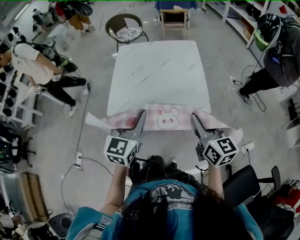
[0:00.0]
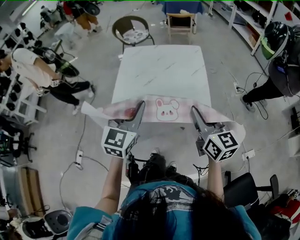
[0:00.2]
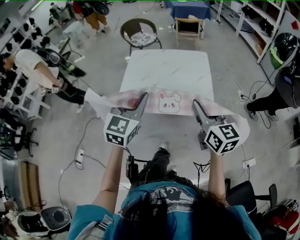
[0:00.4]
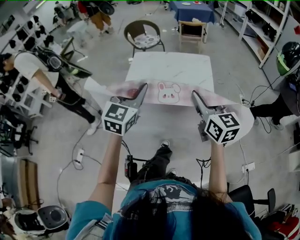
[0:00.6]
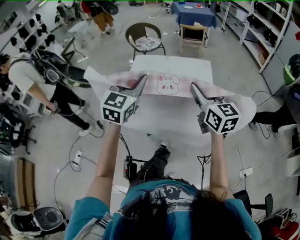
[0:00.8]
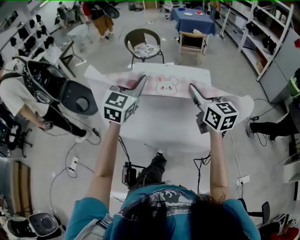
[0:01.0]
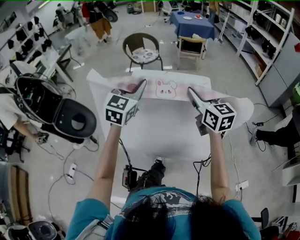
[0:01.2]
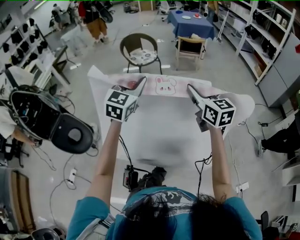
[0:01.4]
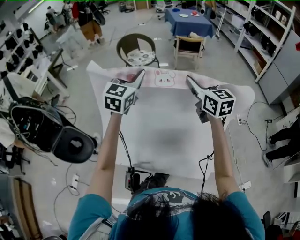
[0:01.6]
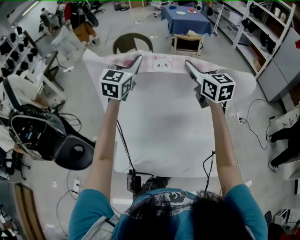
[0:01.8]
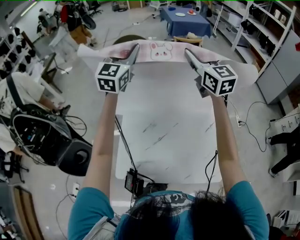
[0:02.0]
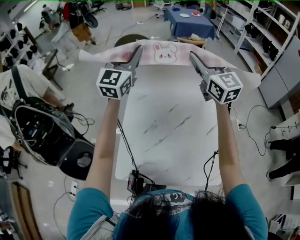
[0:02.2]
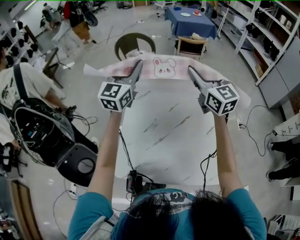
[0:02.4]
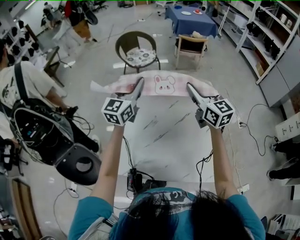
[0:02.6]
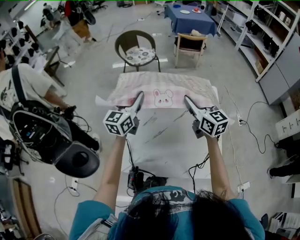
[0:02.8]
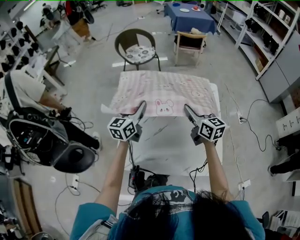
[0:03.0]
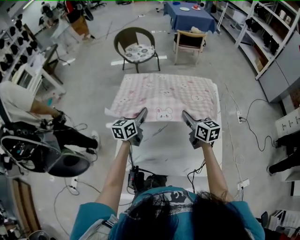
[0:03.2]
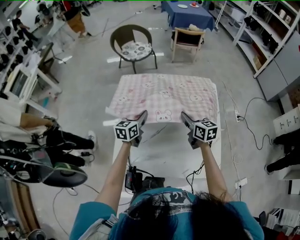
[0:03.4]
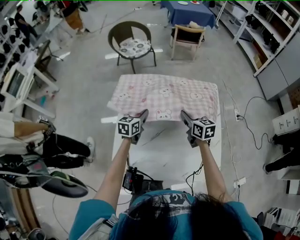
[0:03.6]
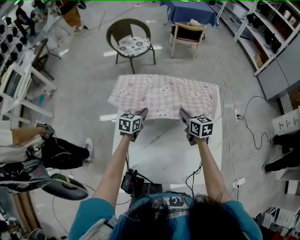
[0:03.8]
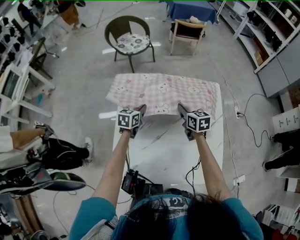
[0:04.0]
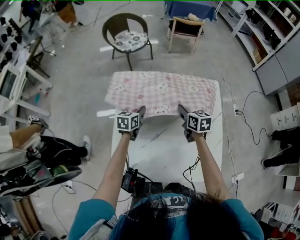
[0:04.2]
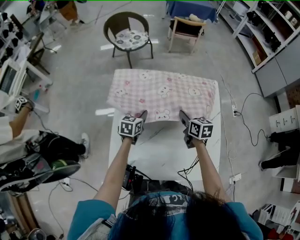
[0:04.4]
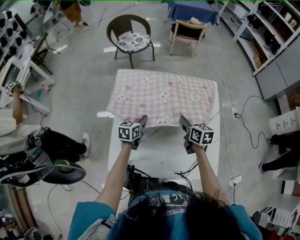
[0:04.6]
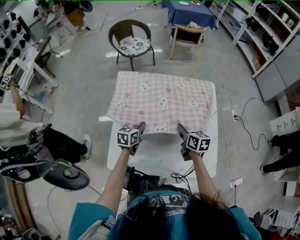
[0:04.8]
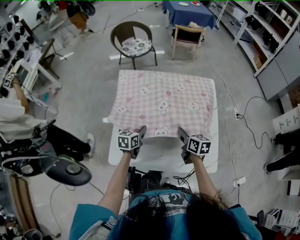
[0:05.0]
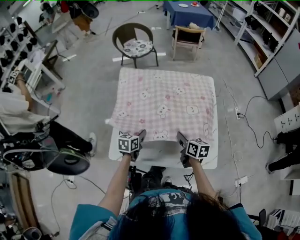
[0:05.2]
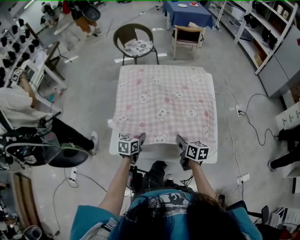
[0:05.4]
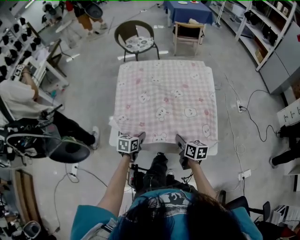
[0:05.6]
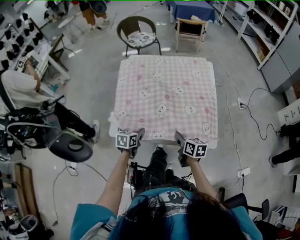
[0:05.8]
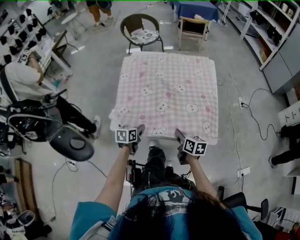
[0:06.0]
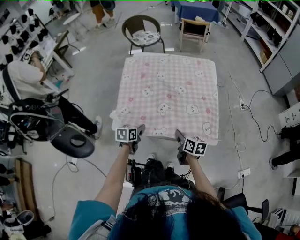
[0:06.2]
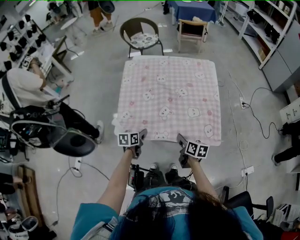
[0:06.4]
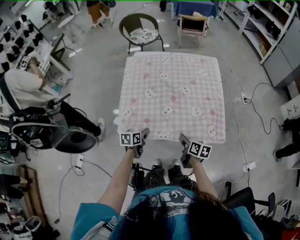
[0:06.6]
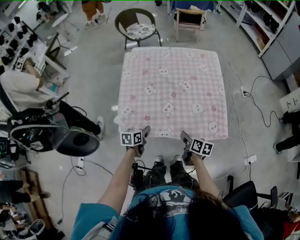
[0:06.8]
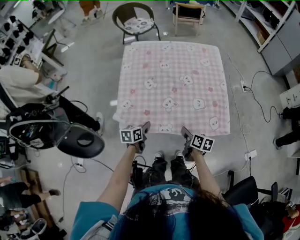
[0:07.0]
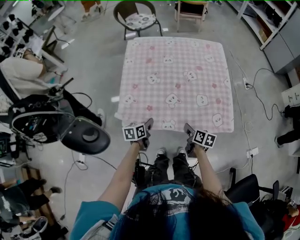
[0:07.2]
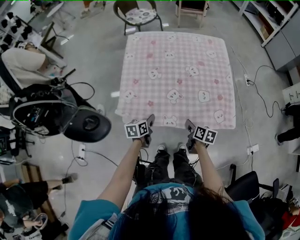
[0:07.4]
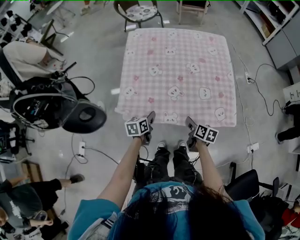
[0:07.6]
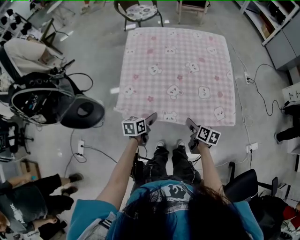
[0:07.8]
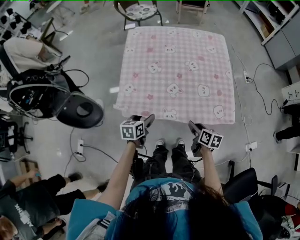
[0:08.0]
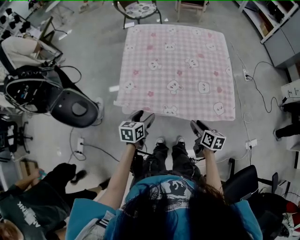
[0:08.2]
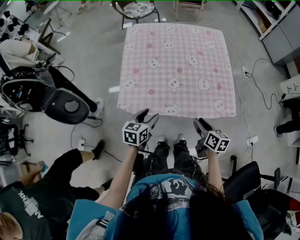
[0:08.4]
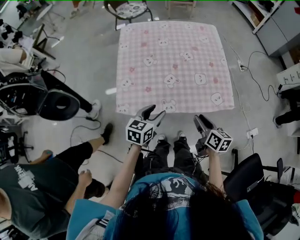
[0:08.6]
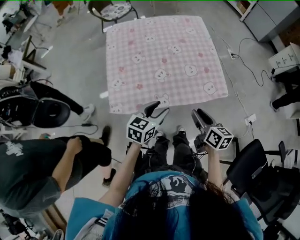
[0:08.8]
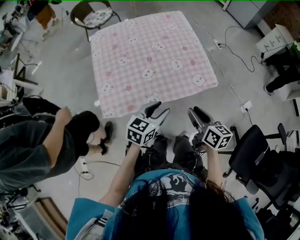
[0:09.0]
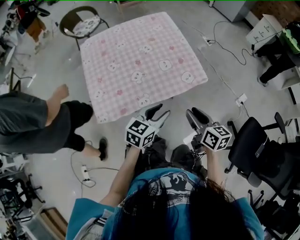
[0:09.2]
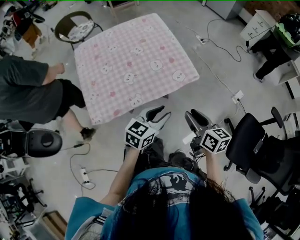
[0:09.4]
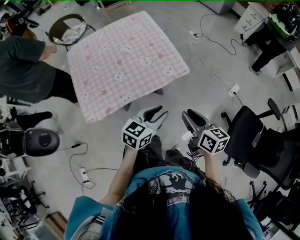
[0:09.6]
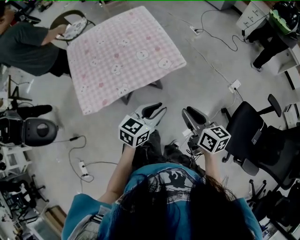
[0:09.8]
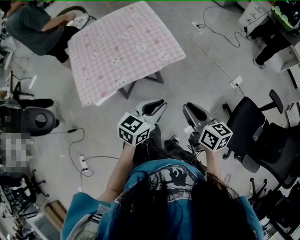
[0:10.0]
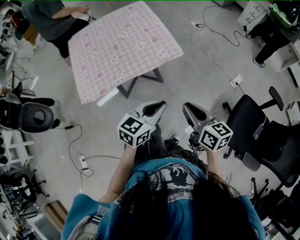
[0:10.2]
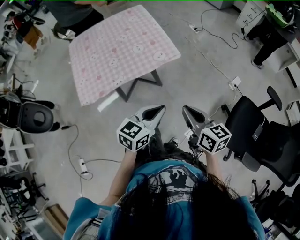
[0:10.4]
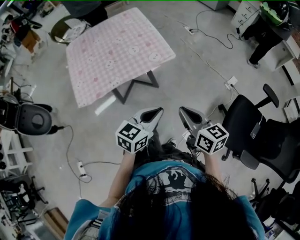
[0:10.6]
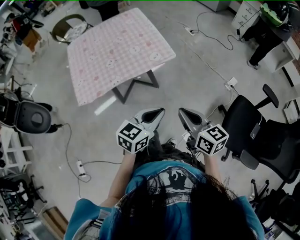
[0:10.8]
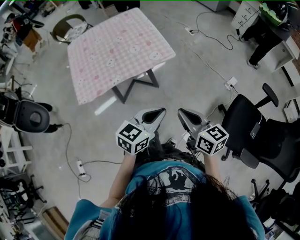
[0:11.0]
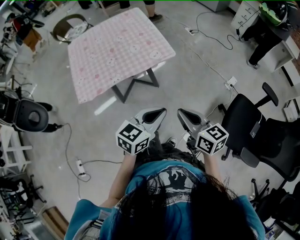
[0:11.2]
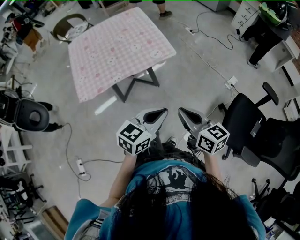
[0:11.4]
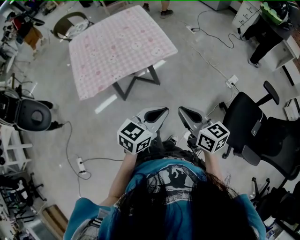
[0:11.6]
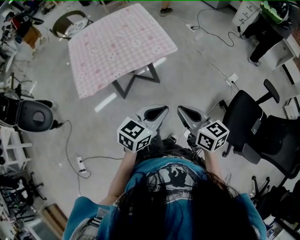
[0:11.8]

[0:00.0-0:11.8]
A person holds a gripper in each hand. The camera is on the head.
0:00.0 to 0:01.4: Both grippers travel together forward, about 35 cm.
0:01.4 to 0:03.0: The two grippers go approximately 15 cm downward and forward. The left gripper changes its angle by some 30 degrees.
0:03.0 to 0:04.4: Both grippers move downward, some 15 cm. The left gripper tilts its fingers some 30 degrees downward; the right gripper turns by about 20 degrees.
0:04.4 to 0:06.0: The two grippers go roughly 30 cm backward.
0:06.0 to 0:07.4: The right gripper is displaced downward by approximately 5 cm.
0:07.4 to 0:08.8: The left gripper travels upward, to the right and backward by some 20 cm, rotates approximately 40 degrees, and opens its fingers. Meanwhile the right gripper goes approximately 20 cm upward and backward, swivels approximately 20 degrees, and opens up.
0:08.8 to 0:10.4: Both grippers move to the right and backward, some 25 cm. The right gripper closes; the left gripper changes its angle by approximately 20 degrees, and closes up.
0:10.4 to 0:11.8: The left gripper is displaced backward by about 5 cm, while the right gripper ends up approximately 5 cm from where it was.

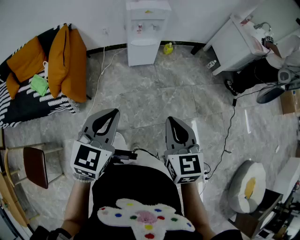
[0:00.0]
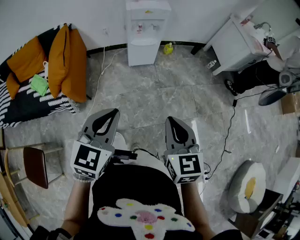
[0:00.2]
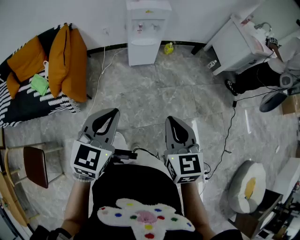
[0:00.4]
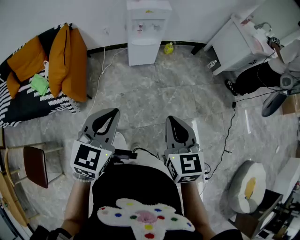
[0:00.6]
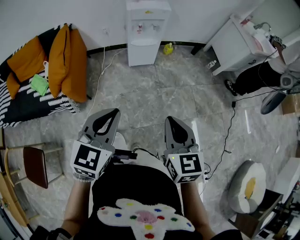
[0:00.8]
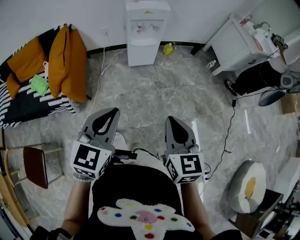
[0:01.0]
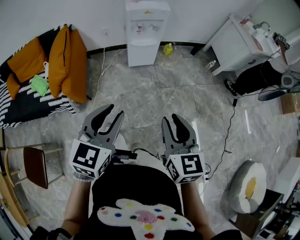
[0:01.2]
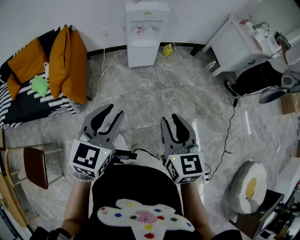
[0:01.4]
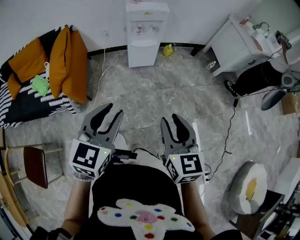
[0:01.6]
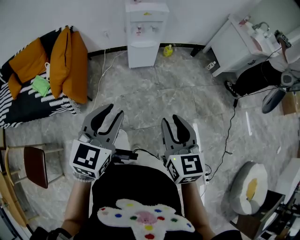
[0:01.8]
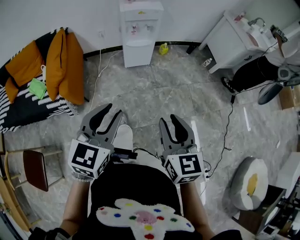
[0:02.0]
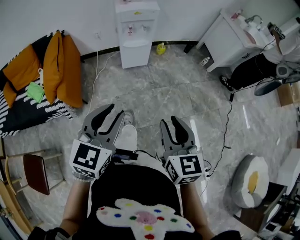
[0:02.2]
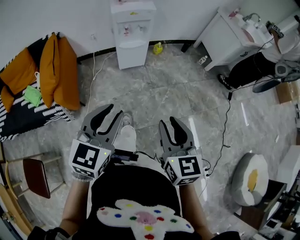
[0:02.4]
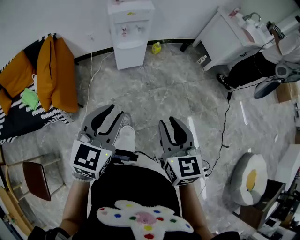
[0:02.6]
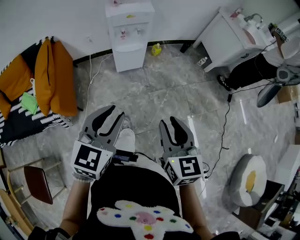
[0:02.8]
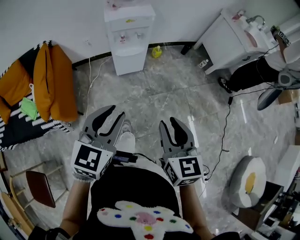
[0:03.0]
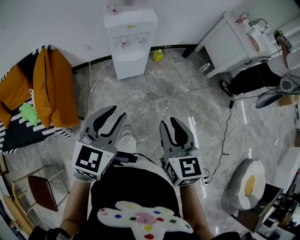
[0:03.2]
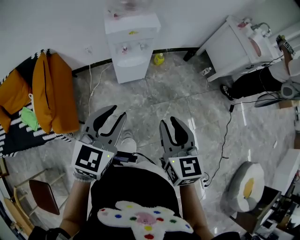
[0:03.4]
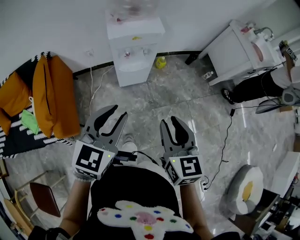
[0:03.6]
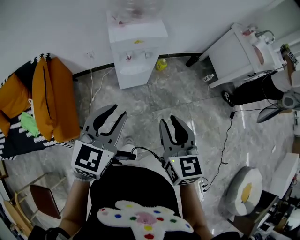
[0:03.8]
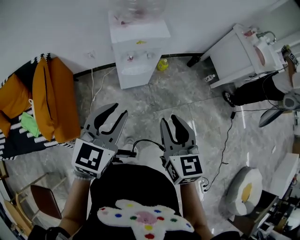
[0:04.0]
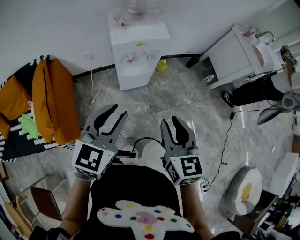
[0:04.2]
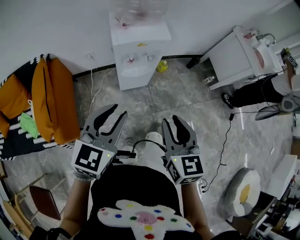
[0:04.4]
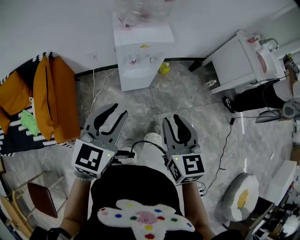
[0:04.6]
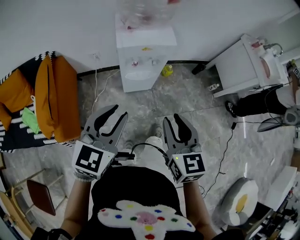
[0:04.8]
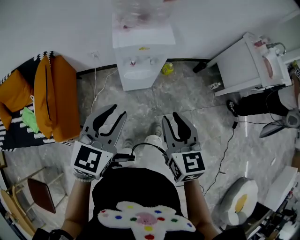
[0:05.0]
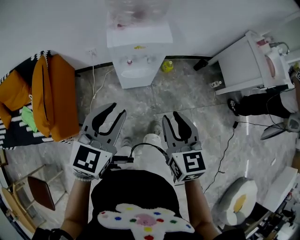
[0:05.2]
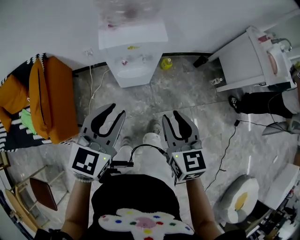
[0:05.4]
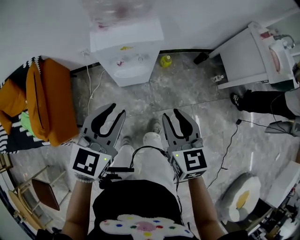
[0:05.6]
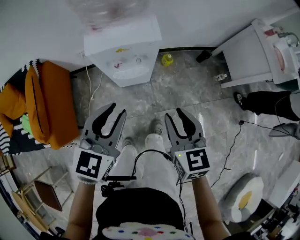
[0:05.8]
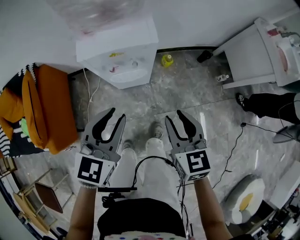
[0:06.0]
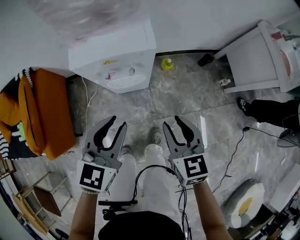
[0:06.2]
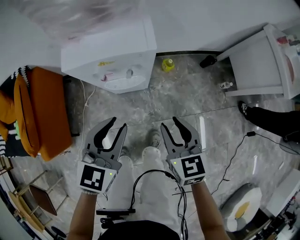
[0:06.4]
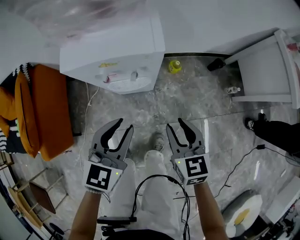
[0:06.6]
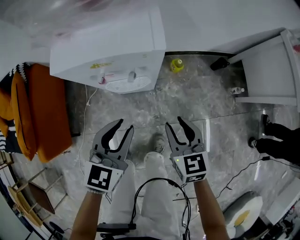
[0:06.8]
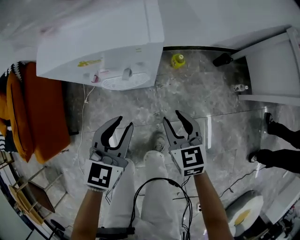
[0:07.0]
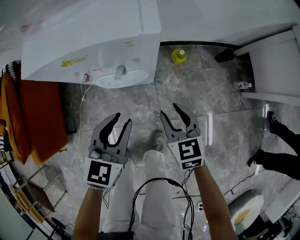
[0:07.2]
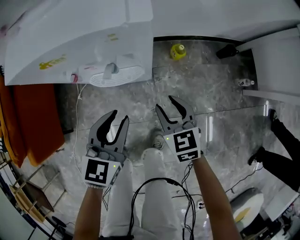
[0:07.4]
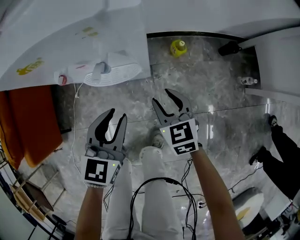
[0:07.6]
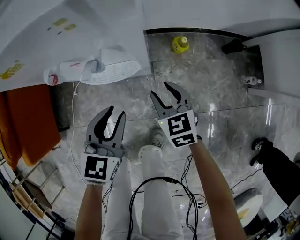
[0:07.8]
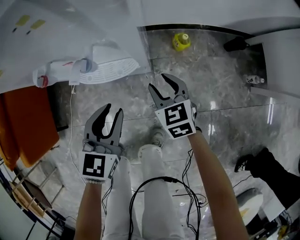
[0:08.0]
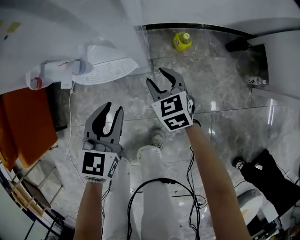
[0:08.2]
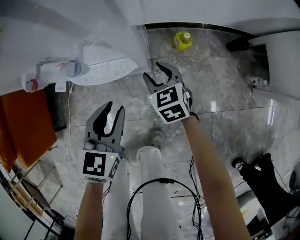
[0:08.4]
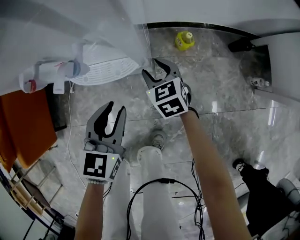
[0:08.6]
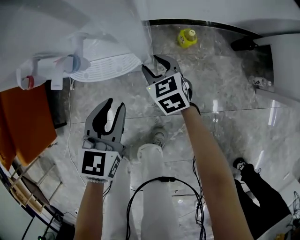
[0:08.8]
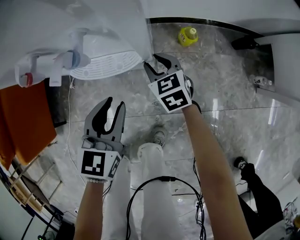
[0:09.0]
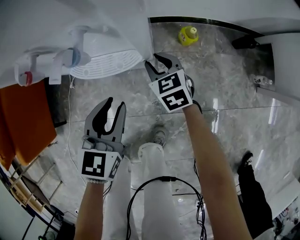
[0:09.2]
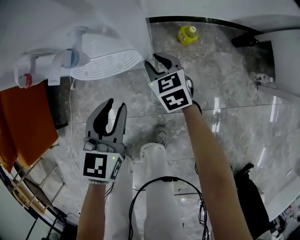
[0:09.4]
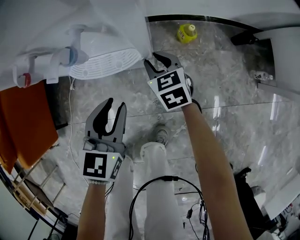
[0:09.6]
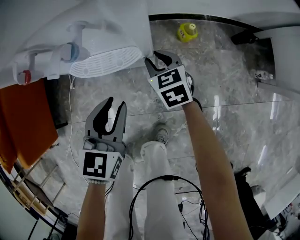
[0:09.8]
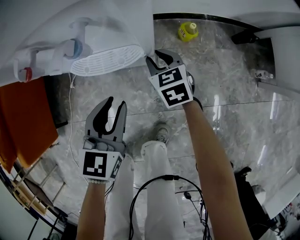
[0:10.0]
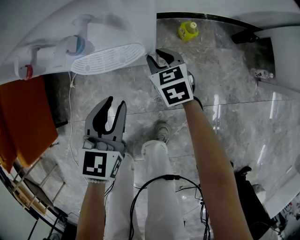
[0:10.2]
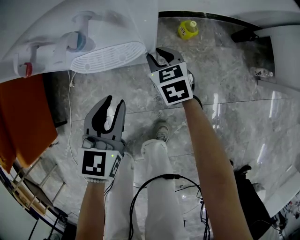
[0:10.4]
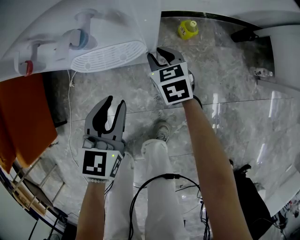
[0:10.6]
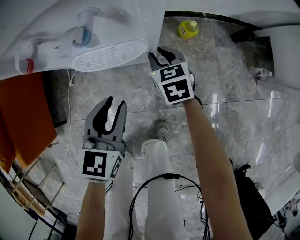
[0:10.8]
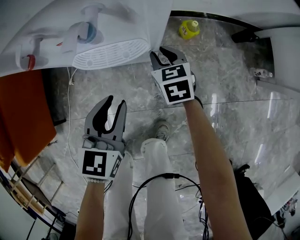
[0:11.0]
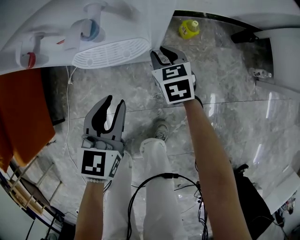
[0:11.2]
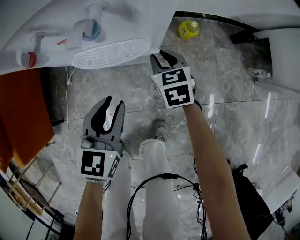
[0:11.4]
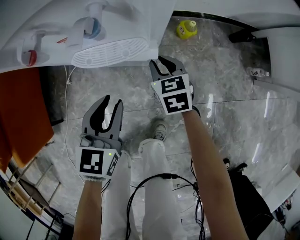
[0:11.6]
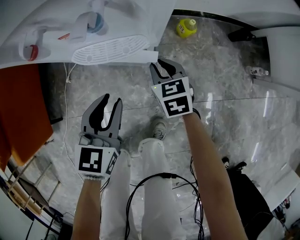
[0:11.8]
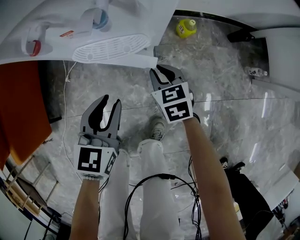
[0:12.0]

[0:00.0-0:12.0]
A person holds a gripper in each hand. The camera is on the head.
0:00.0 to 0:01.6: The right gripper opens up.
0:01.6 to 0:03.0: The two grippers go some 15 cm forward.
0:03.0 to 0:04.4: The two grippers go approximately 20 cm forward and to the left.
0:04.4 to 0:06.0: The right gripper travels forward, downward and to the right by some 25 cm; the left gripper is displaced forward, to the right and downward by roughly 20 cm.
0:06.0 to 0:07.6: The right gripper shifts approximately 40 cm downward and forward. The left gripper moves downward, some 30 cm.
0:07.6 to 0:09.0: The right gripper moves downward and forward, about 15 cm; the left gripper heads downward, covering about 10 cm.
0:09.0 to 0:10.4: The grippers make only small movements.
0:10.4 to 0:12.0: The right gripper travels backward by roughly 10 cm.
